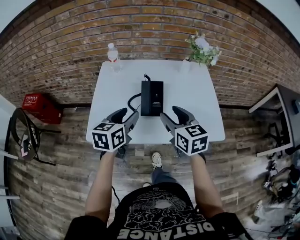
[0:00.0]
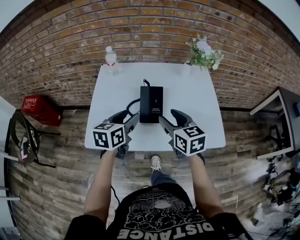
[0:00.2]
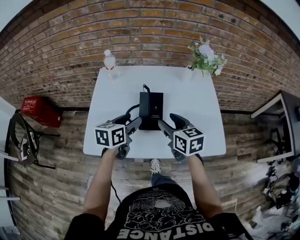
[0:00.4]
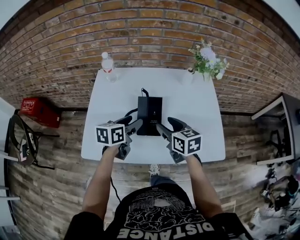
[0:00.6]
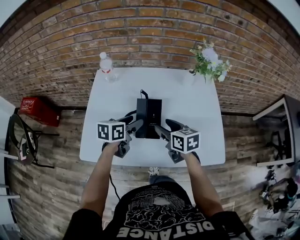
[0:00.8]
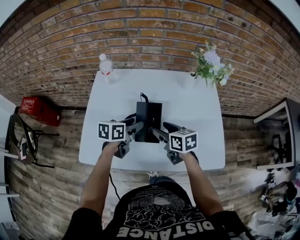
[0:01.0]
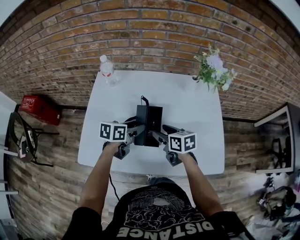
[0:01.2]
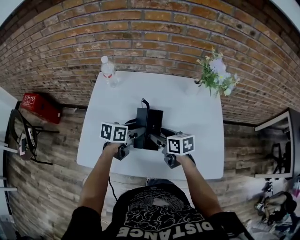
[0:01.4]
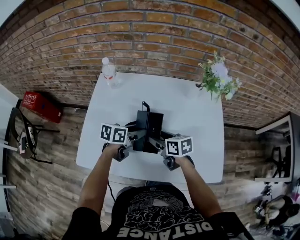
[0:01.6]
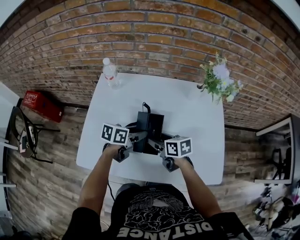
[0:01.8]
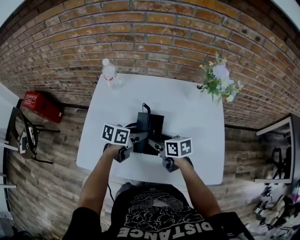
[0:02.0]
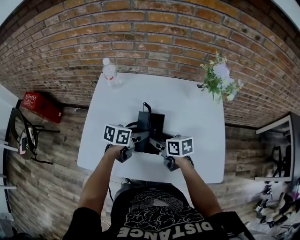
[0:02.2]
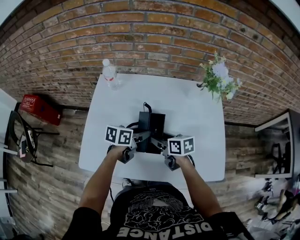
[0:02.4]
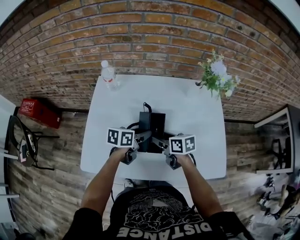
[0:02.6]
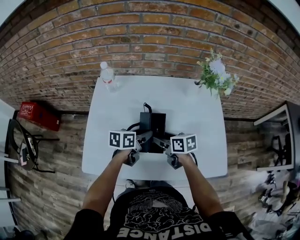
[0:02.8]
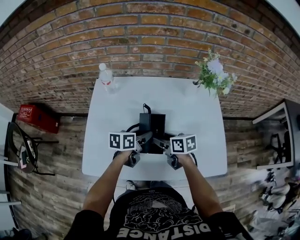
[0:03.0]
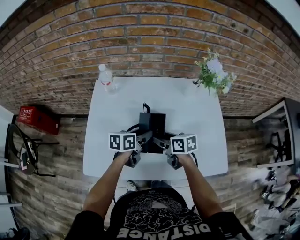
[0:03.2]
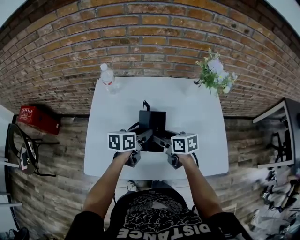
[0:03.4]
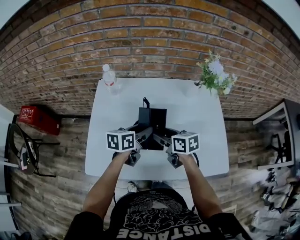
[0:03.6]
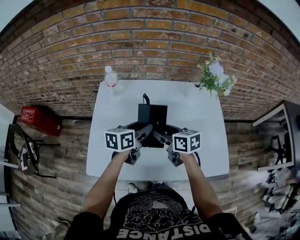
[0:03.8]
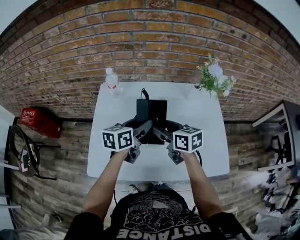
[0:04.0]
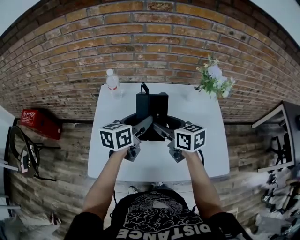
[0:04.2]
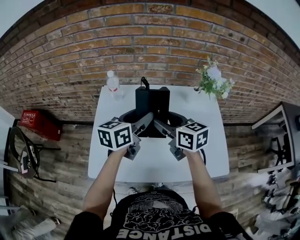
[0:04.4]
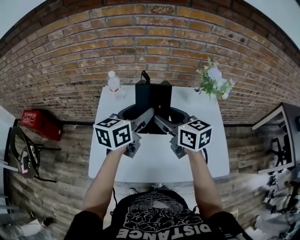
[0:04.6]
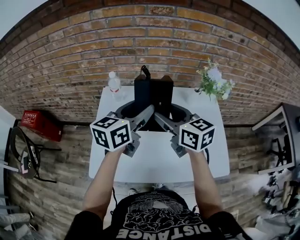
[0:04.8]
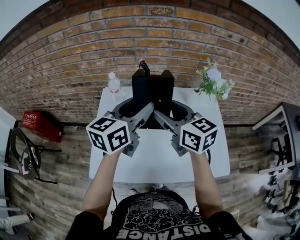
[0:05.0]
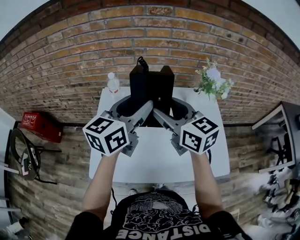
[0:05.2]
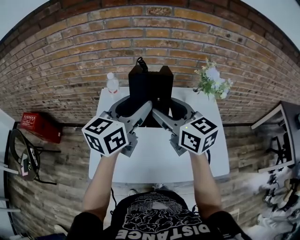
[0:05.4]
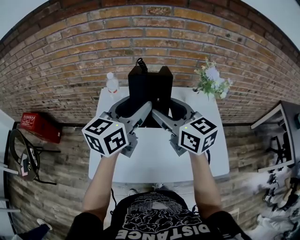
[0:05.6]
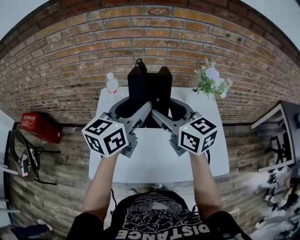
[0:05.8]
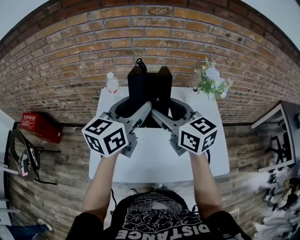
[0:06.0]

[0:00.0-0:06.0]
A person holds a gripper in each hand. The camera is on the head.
0:00.0 to 0:01.6: The right gripper goes some 25 cm downward and forward, and rotates about 40 degrees. Meanwhile the left gripper shifts about 20 cm forward and downward, and rotates approximately 30 degrees.
0:01.6 to 0:03.0: There are only small adjustments of the grippers.
0:03.0 to 0:04.4: The two grippers go about 20 cm upward. The right gripper swivels roughly 30 degrees; the left gripper turns by some 30 degrees.
0:04.4 to 0:06.0: Both grippers move upward, about 10 cm.

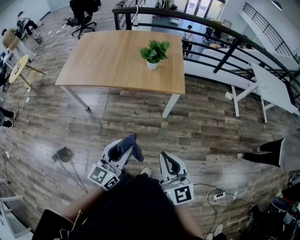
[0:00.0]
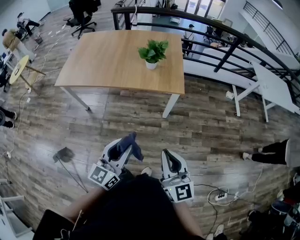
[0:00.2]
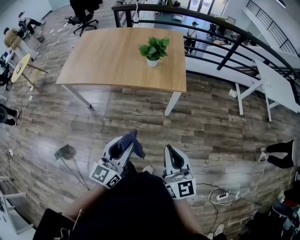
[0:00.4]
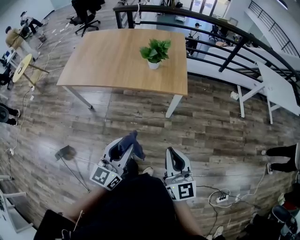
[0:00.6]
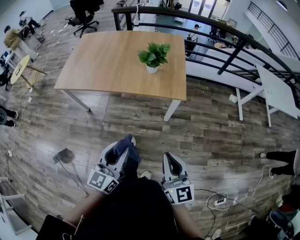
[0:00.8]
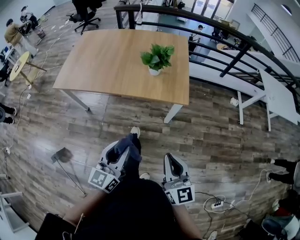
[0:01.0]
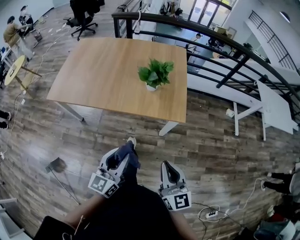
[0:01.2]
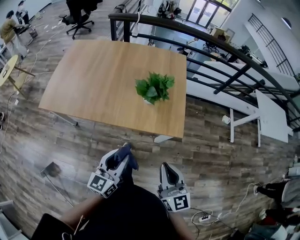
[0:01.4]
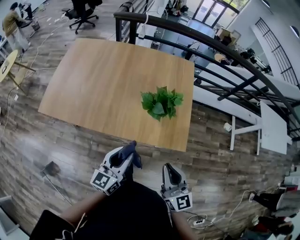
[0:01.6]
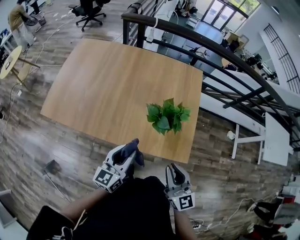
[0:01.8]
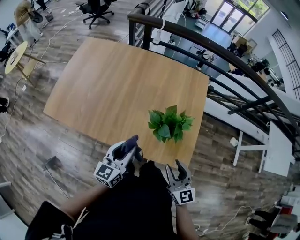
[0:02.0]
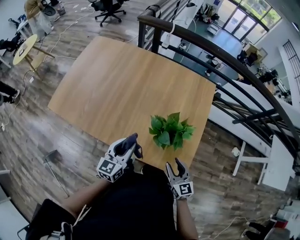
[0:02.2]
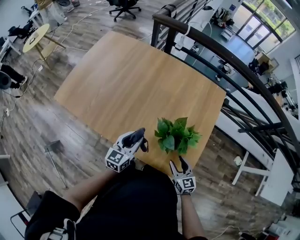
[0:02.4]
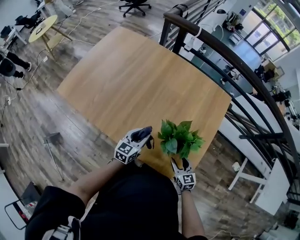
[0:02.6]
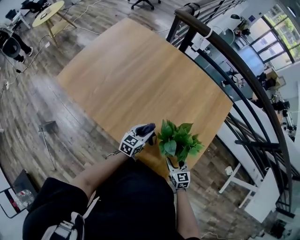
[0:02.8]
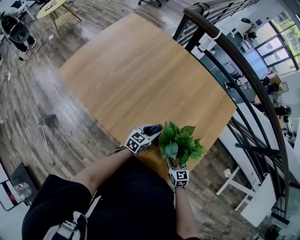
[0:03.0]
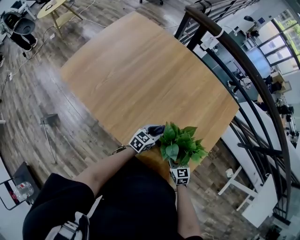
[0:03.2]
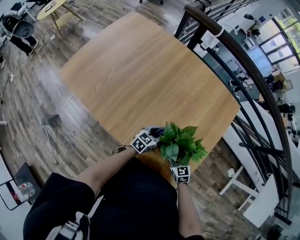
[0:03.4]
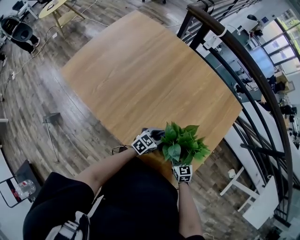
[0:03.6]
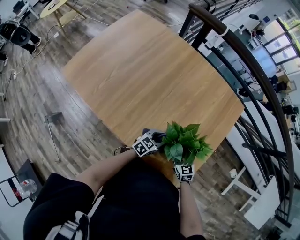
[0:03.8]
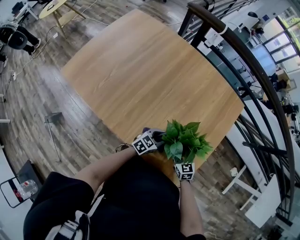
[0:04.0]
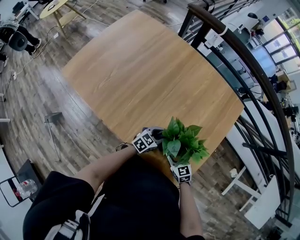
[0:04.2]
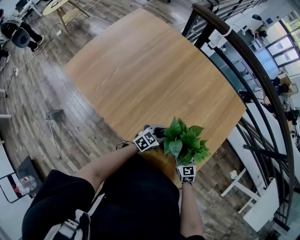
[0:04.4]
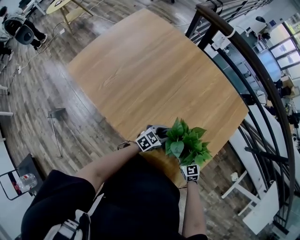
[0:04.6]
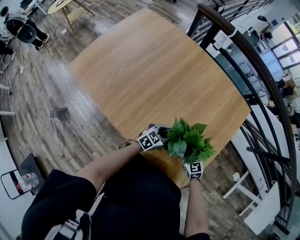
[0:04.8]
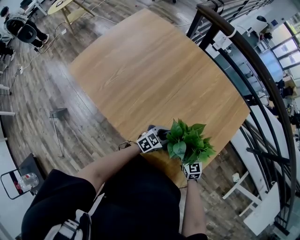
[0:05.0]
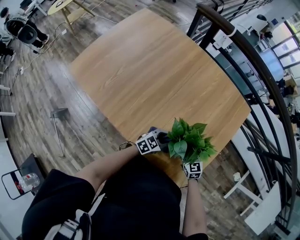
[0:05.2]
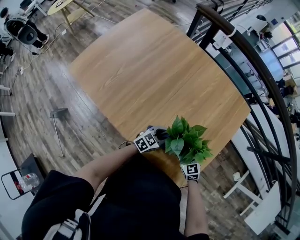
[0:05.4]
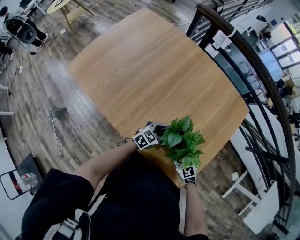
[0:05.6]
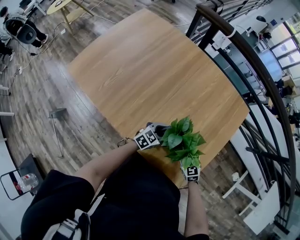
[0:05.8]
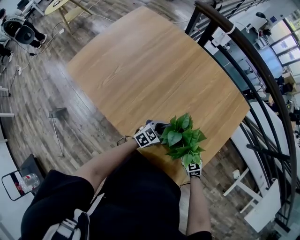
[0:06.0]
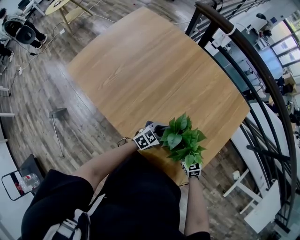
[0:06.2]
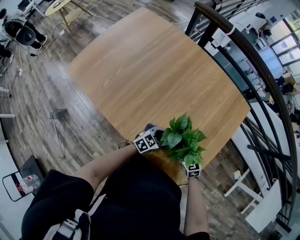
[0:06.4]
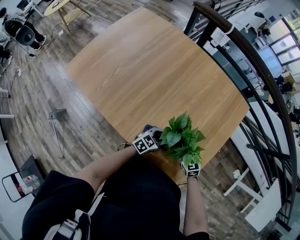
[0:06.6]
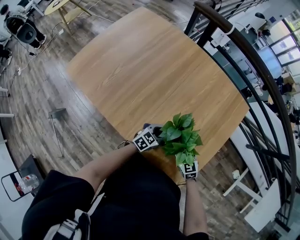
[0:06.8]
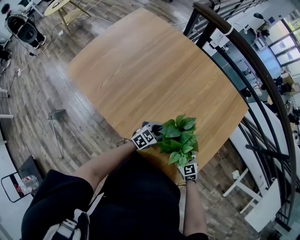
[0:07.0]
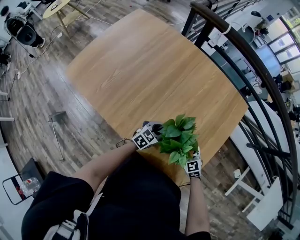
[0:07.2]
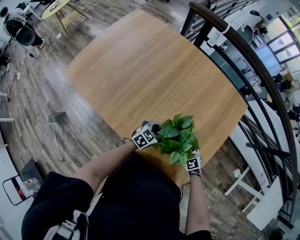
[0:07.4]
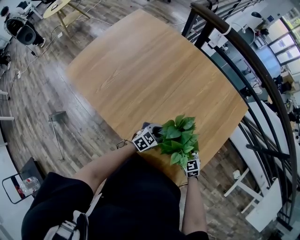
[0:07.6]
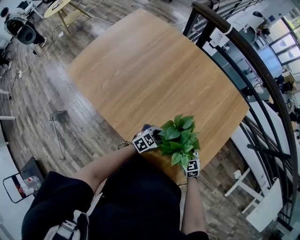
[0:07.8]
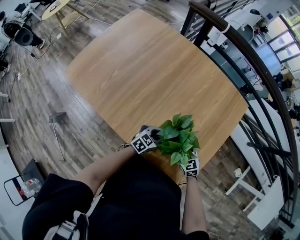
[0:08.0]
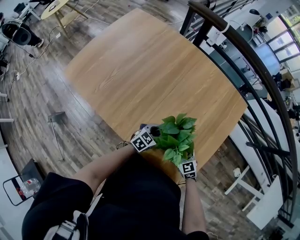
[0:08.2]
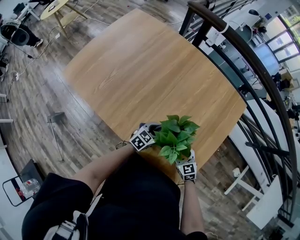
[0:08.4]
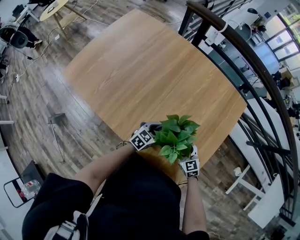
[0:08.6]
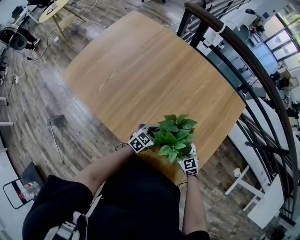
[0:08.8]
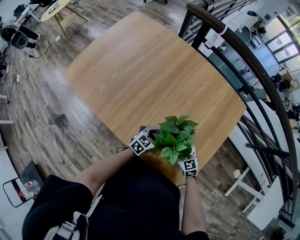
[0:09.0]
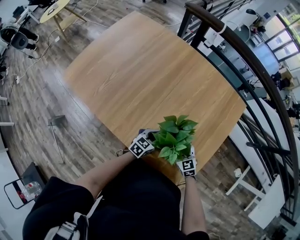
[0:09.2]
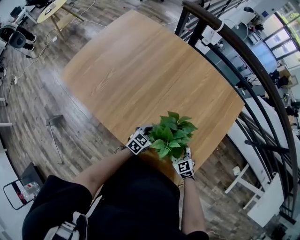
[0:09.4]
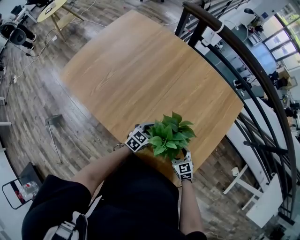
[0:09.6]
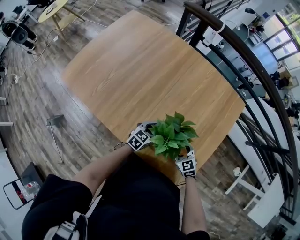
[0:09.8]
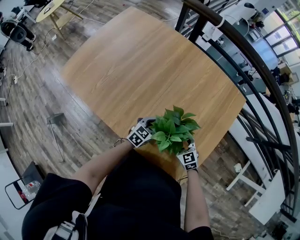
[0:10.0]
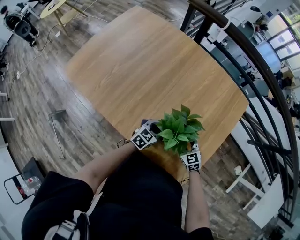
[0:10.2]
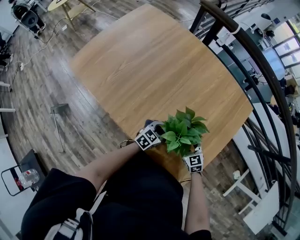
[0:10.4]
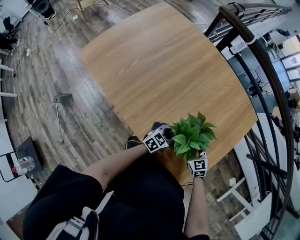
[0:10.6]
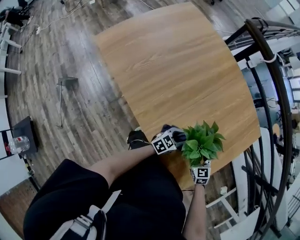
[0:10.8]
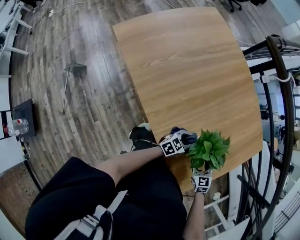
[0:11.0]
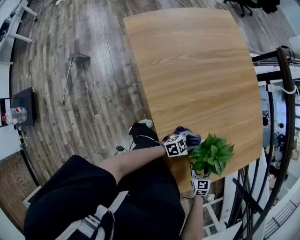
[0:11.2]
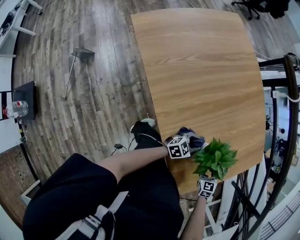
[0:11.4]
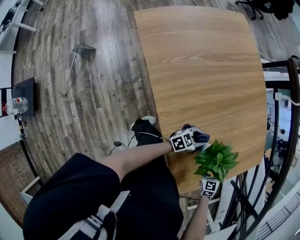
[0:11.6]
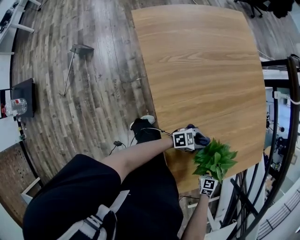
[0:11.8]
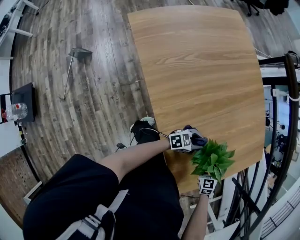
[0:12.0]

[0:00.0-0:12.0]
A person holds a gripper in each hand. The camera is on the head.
0:00.0 to 0:01.6: The grippers both shift forward by approximately 35 cm.
0:01.6 to 0:03.0: The left gripper travels forward and downward by approximately 35 cm. The right gripper goes approximately 35 cm downward and forward, tilts its fingers approximately 40 degrees downward, and opens.
0:04.4 to 0:10.4: The grippers move only a little.
0:10.4 to 0:12.0: The right gripper rotates approximately 20 degrees.

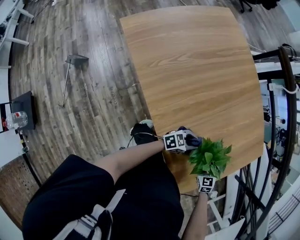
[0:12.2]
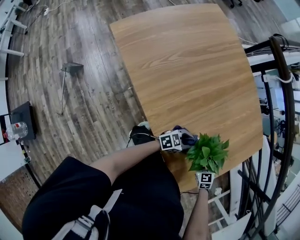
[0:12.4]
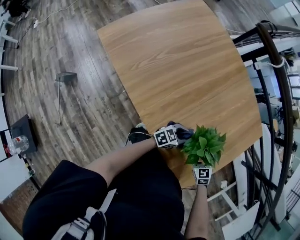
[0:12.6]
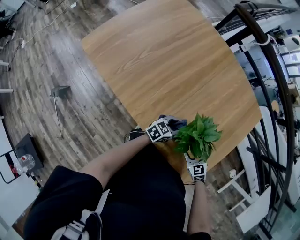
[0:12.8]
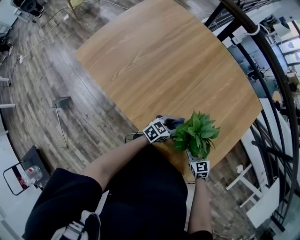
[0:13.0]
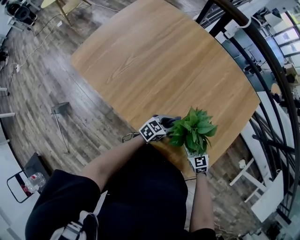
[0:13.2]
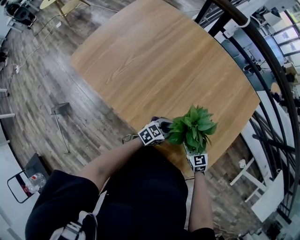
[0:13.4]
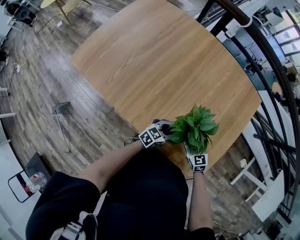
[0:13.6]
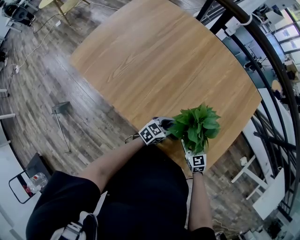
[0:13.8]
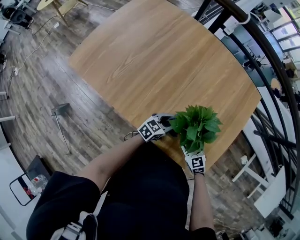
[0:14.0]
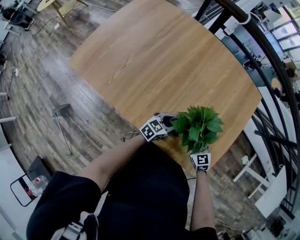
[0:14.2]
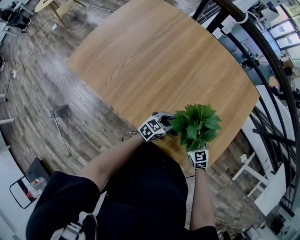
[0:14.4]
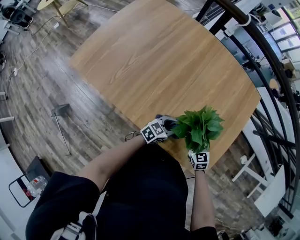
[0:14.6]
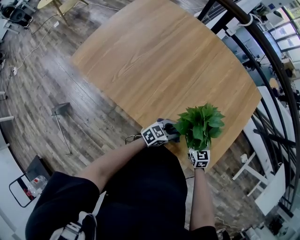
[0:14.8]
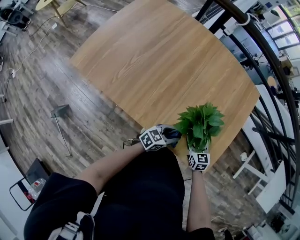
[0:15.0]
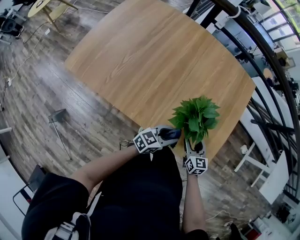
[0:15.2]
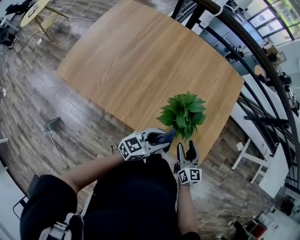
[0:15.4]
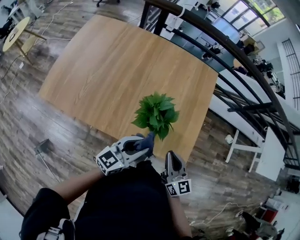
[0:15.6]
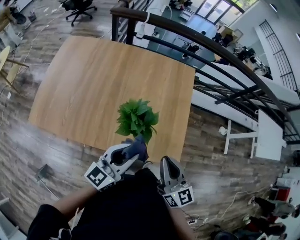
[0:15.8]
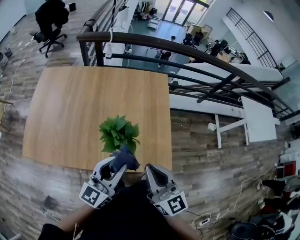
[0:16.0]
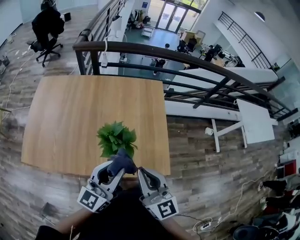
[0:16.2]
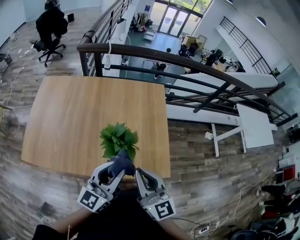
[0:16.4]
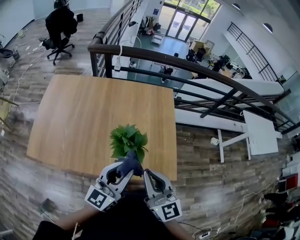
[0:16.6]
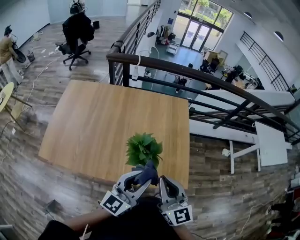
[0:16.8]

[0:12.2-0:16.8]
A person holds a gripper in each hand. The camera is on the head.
0:12.2 to 0:13.8: The right gripper shifts some 5 cm to the left, and swivels approximately 20 degrees.
0:13.8 to 0:15.2: The left gripper goes roughly 10 cm upward and backward, while the right gripper rotates approximately 30 degrees.
0:15.2 to 0:16.8: Both grippers travel together upward, roughly 25 cm. The left gripper rotates approximately 30 degrees. Meanwhile the right gripper tips its fingers upward by some 30 degrees, and closes up.

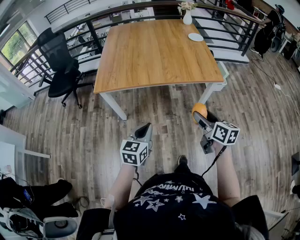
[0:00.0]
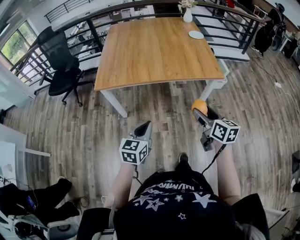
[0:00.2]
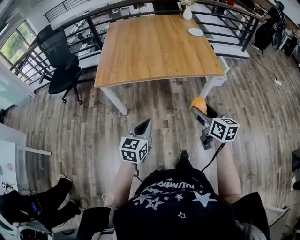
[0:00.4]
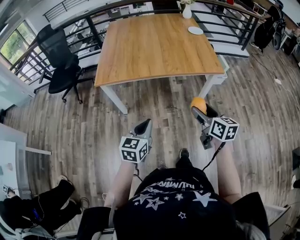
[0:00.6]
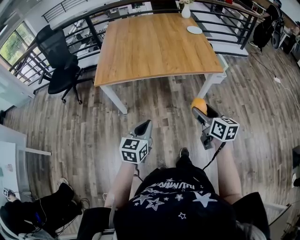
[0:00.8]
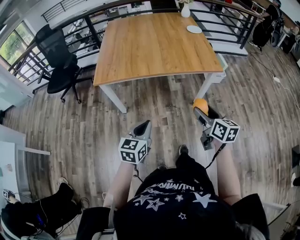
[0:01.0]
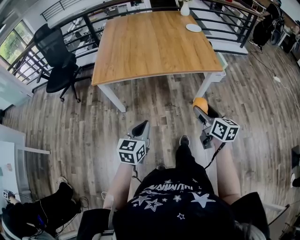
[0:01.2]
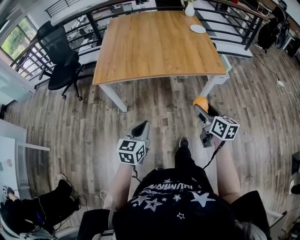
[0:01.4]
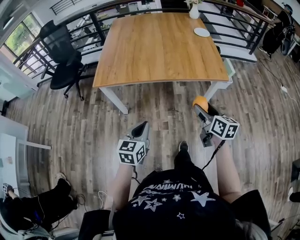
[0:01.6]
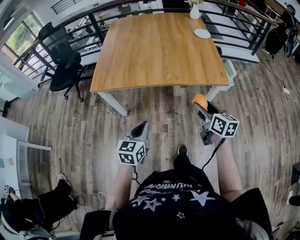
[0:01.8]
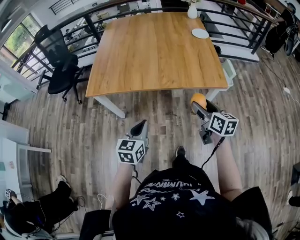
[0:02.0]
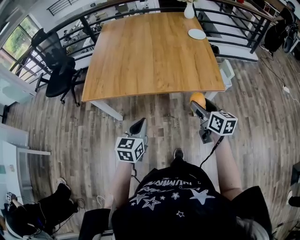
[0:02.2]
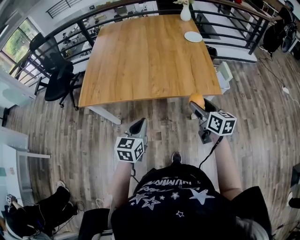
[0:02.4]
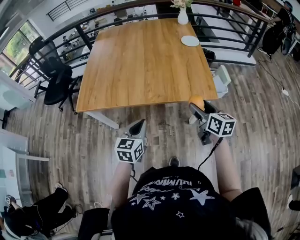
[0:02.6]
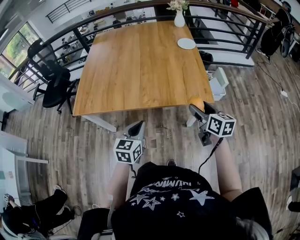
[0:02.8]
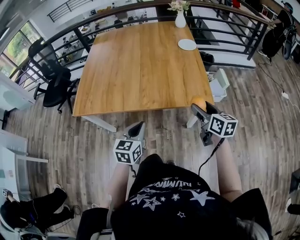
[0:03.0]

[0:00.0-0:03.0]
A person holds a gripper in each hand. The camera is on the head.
0:00.0 to 0:01.6: The right gripper heads forward, covering approximately 5 cm.
0:01.6 to 0:03.0: Both grippers move forward and to the right, approximately 25 cm.
